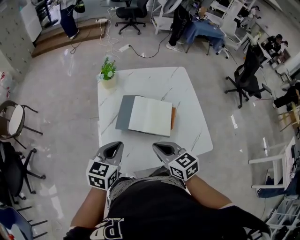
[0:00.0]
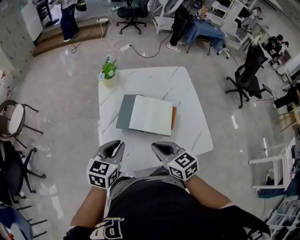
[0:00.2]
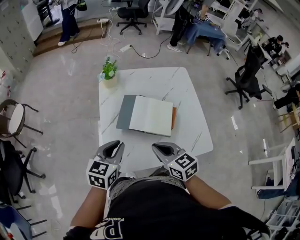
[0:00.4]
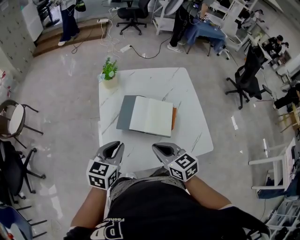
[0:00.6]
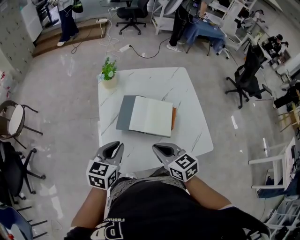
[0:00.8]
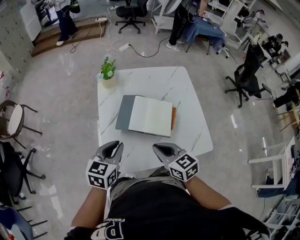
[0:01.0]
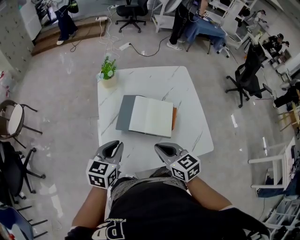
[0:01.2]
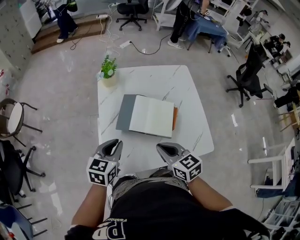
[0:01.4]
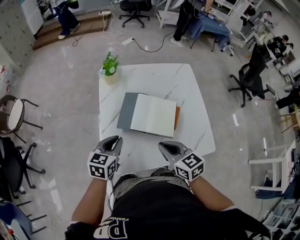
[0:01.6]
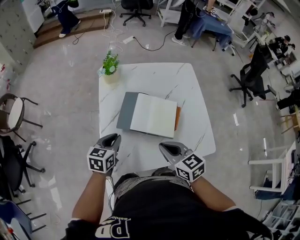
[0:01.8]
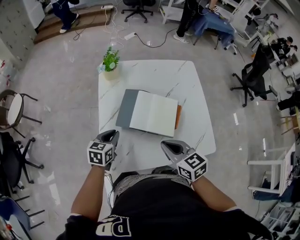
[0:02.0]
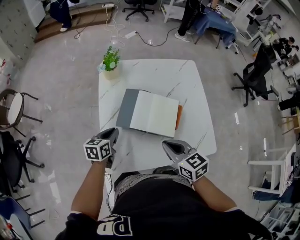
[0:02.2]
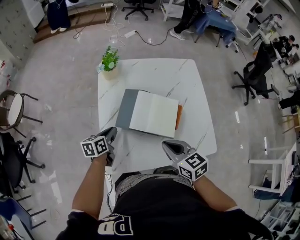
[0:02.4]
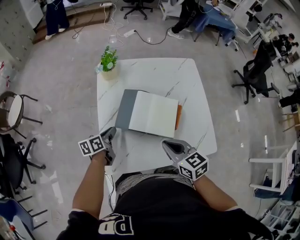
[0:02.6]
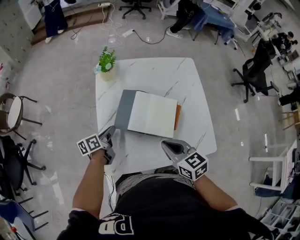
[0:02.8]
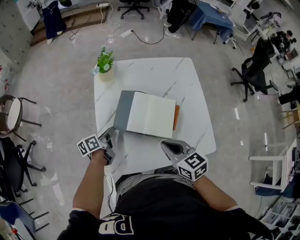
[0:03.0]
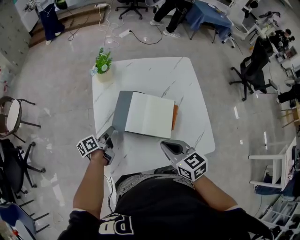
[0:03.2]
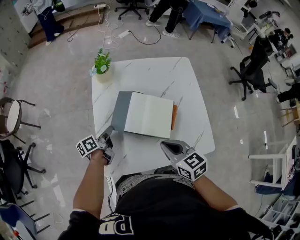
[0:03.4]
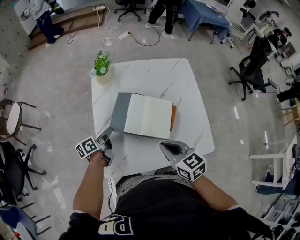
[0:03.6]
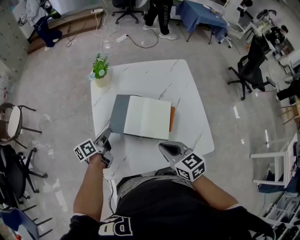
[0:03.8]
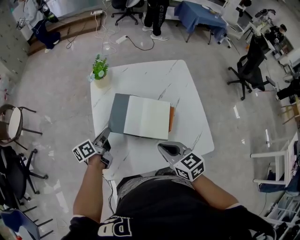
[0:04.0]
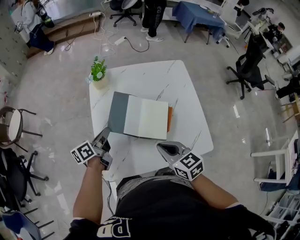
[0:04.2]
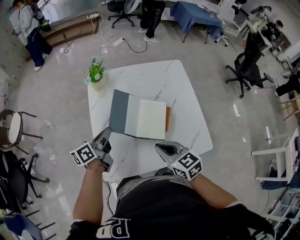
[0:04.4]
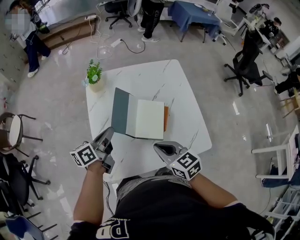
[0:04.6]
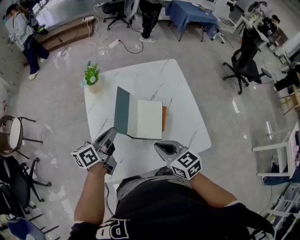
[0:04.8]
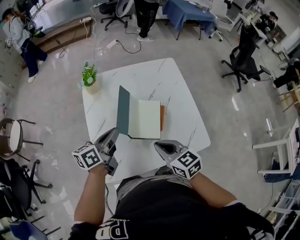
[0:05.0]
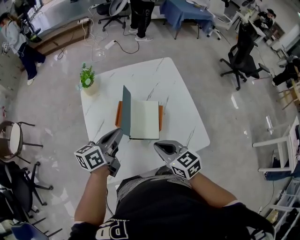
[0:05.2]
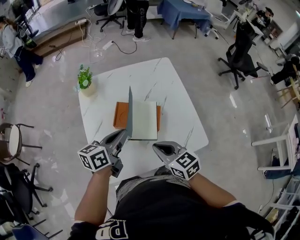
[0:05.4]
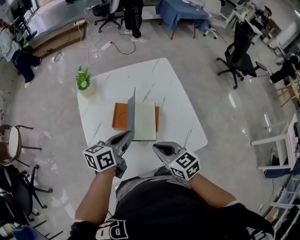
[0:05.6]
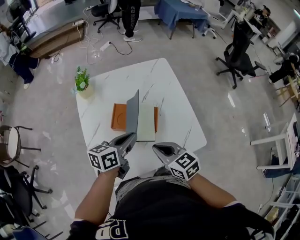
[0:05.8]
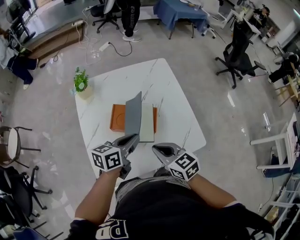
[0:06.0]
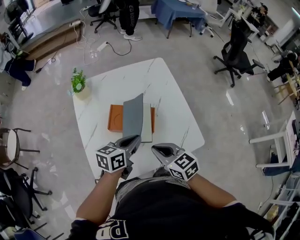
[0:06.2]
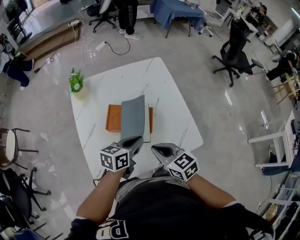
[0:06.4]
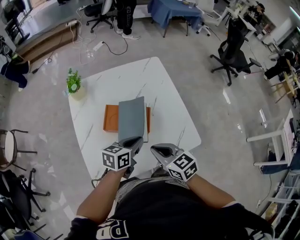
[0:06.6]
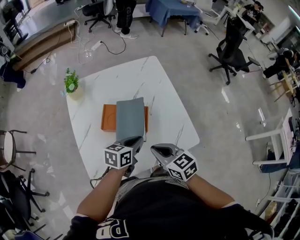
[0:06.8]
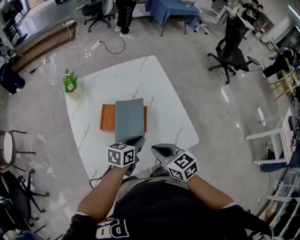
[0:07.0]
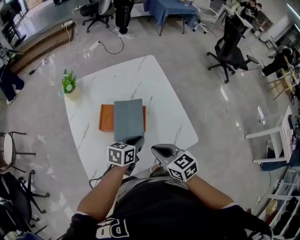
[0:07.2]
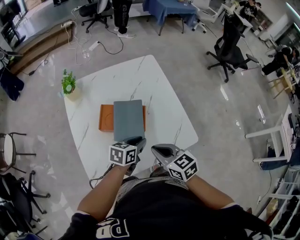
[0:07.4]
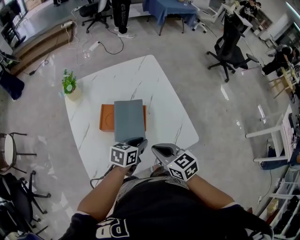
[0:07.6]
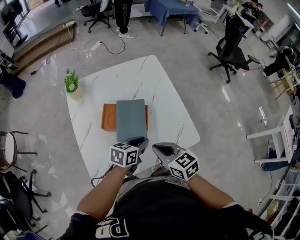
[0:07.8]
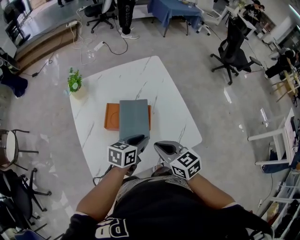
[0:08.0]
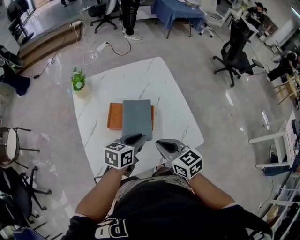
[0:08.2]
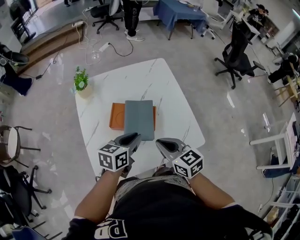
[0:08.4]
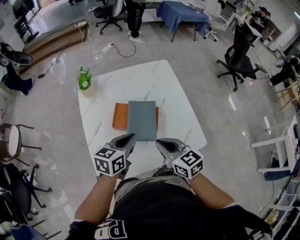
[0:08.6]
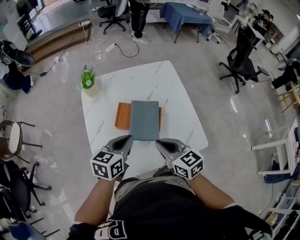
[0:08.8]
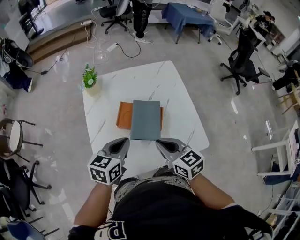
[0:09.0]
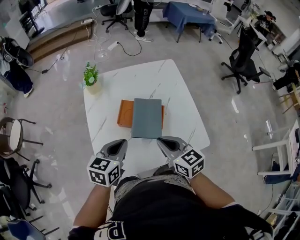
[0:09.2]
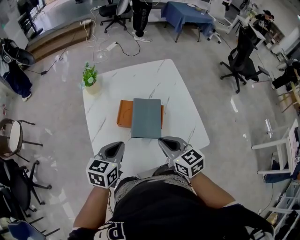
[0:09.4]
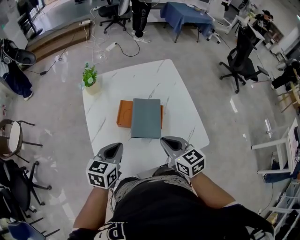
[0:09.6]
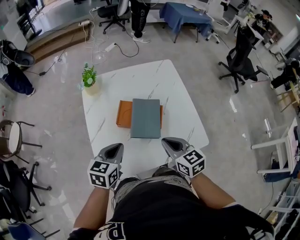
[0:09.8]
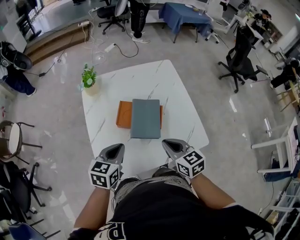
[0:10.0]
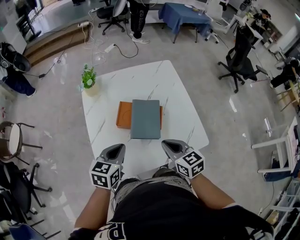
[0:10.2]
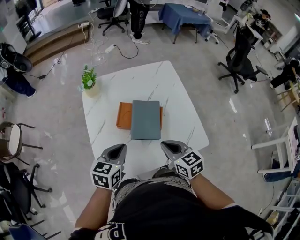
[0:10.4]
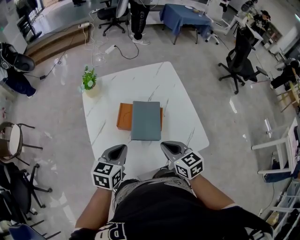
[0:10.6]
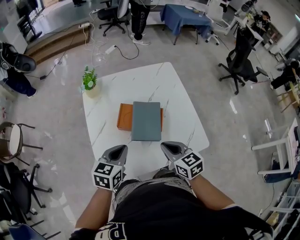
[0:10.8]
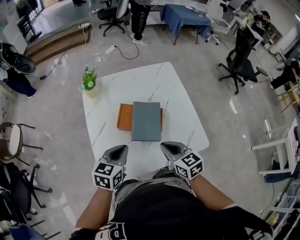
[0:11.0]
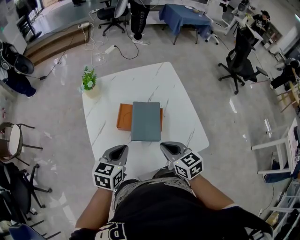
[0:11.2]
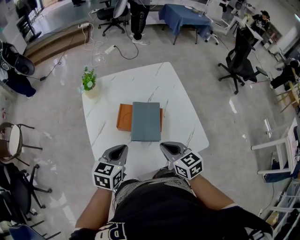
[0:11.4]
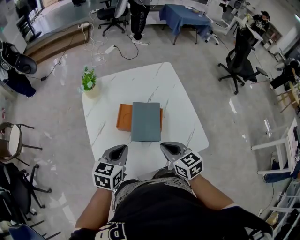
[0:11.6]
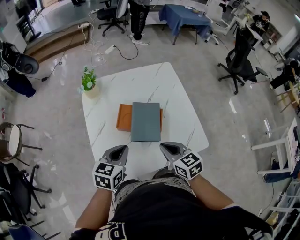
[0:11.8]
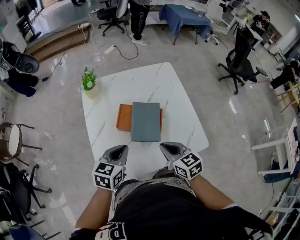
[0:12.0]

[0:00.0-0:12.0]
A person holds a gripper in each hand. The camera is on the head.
0:00.0 to 0:01.6: The left gripper is displaced downward by approximately 5 cm.
0:01.6 to 0:03.0: The left gripper travels downward and forward by some 15 cm, and rotates around the line of its fingers by some 50 degrees, counterclockwise from behind.
0:03.0 to 0:04.4: The left gripper moves upward, about 15 cm.
0:04.4 to 0:06.0: The left gripper shifts roughly 20 cm to the right, and changes its angle by about 30 degrees.
0:06.0 to 0:07.6: The left gripper is displaced downward and to the right by about 15 cm, and rotates roughly 20 degrees.
0:07.6 to 0:09.0: The right gripper heads to the left, covering some 5 cm; the left gripper heads to the left and upward, covering some 20 cm, and rotates some 20 degrees.
0:09.0 to 0:10.4: The grippers move only a little.
0:10.4 to 0:12.0: Both grippers stay about where they are.

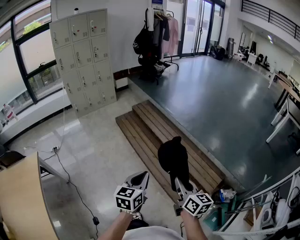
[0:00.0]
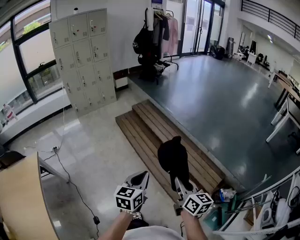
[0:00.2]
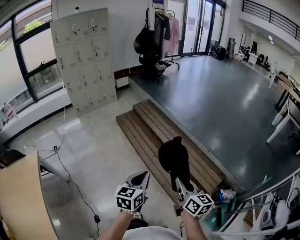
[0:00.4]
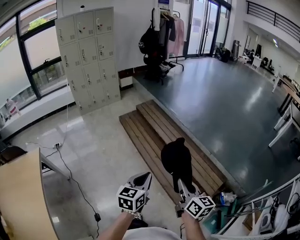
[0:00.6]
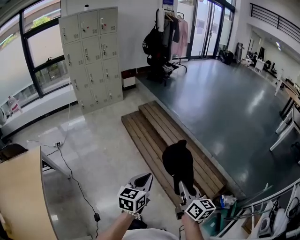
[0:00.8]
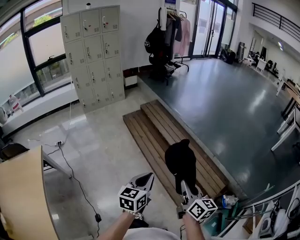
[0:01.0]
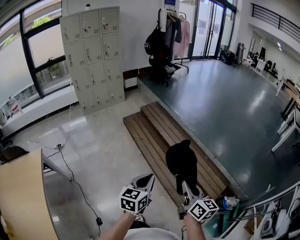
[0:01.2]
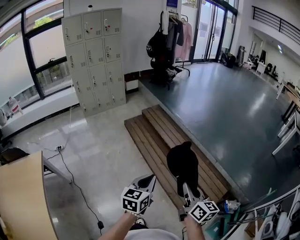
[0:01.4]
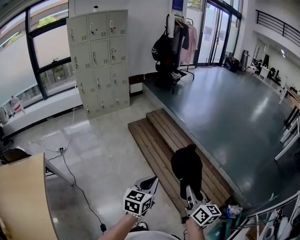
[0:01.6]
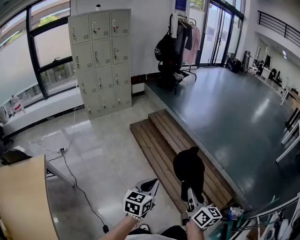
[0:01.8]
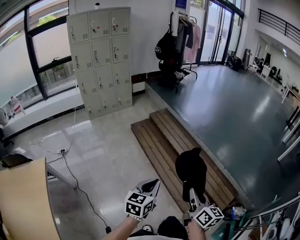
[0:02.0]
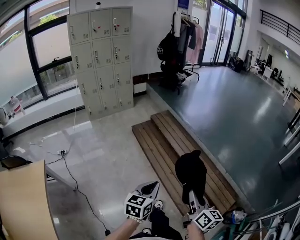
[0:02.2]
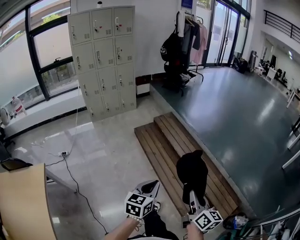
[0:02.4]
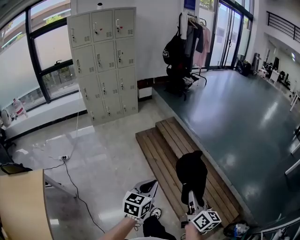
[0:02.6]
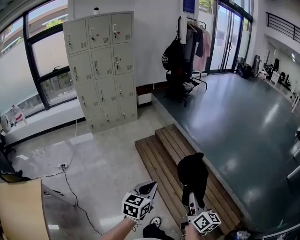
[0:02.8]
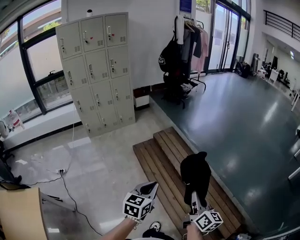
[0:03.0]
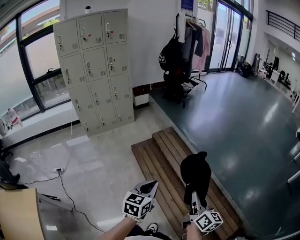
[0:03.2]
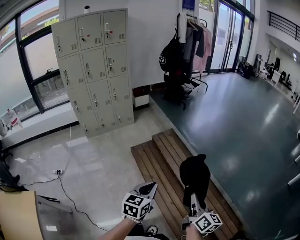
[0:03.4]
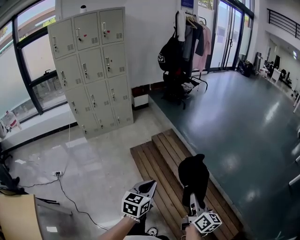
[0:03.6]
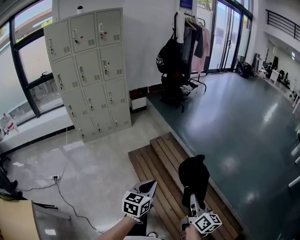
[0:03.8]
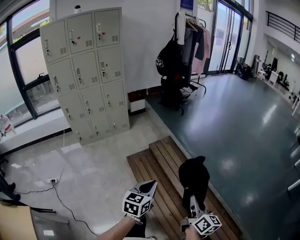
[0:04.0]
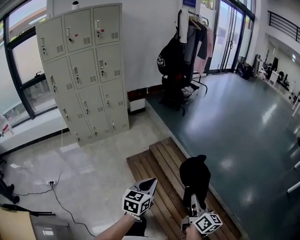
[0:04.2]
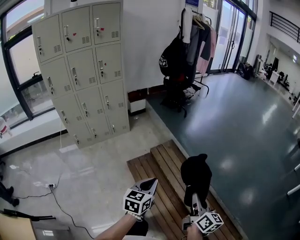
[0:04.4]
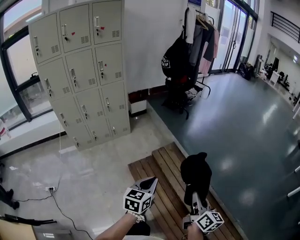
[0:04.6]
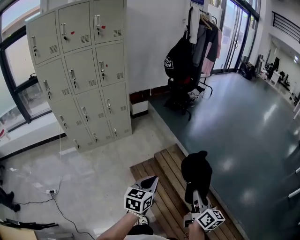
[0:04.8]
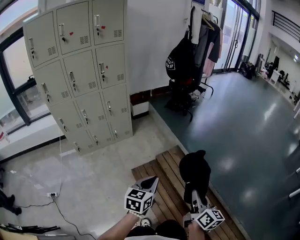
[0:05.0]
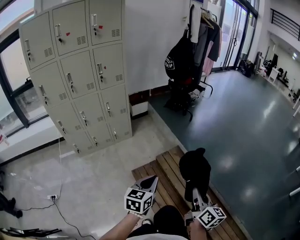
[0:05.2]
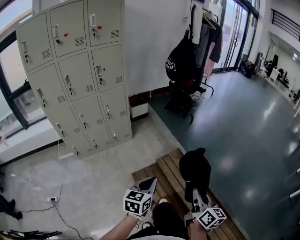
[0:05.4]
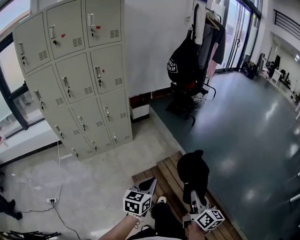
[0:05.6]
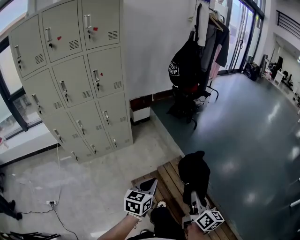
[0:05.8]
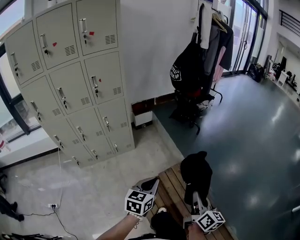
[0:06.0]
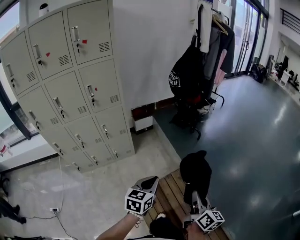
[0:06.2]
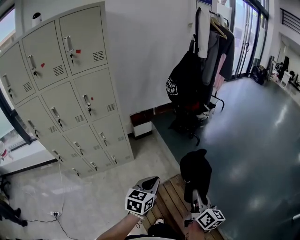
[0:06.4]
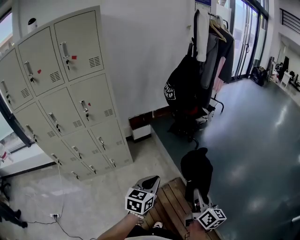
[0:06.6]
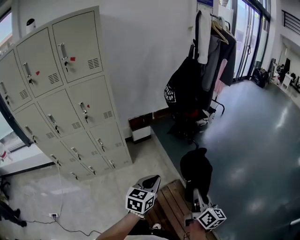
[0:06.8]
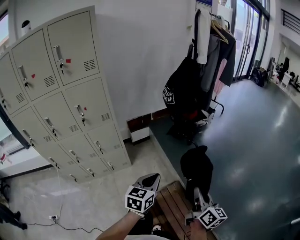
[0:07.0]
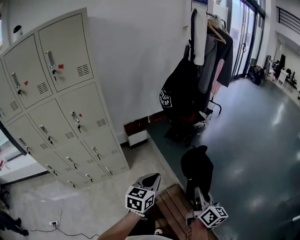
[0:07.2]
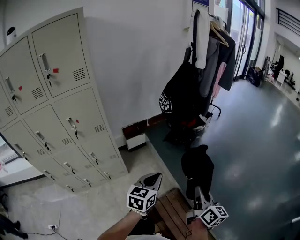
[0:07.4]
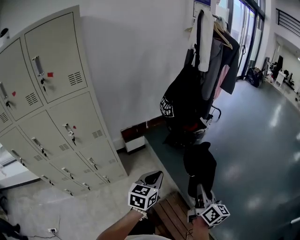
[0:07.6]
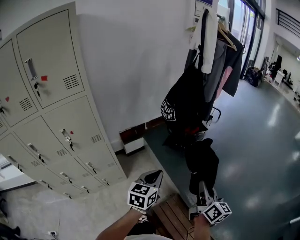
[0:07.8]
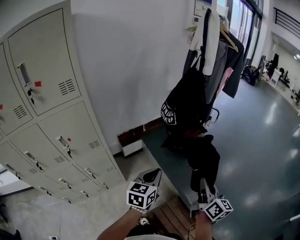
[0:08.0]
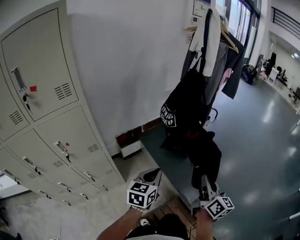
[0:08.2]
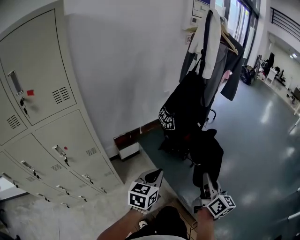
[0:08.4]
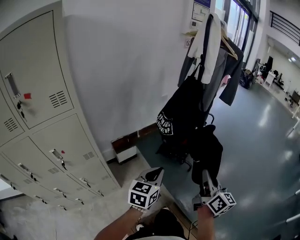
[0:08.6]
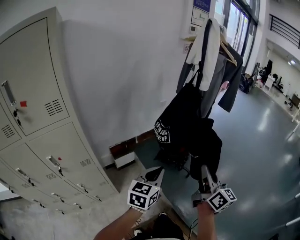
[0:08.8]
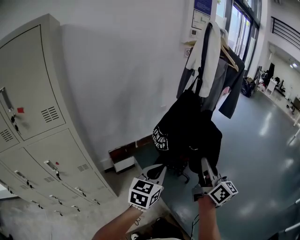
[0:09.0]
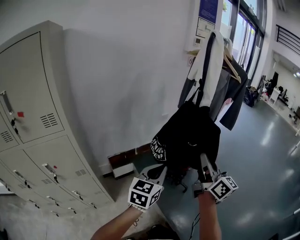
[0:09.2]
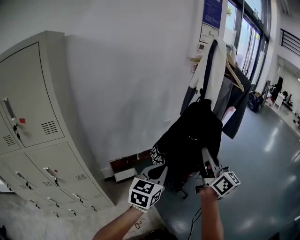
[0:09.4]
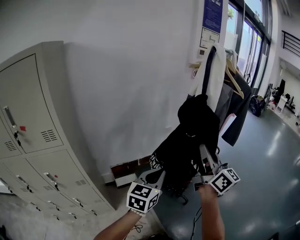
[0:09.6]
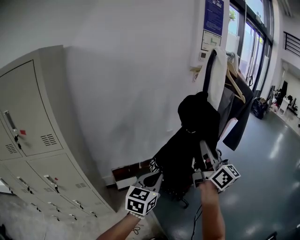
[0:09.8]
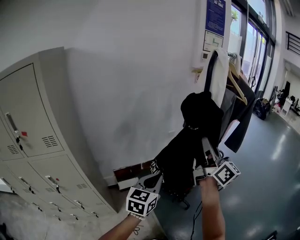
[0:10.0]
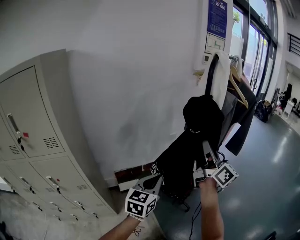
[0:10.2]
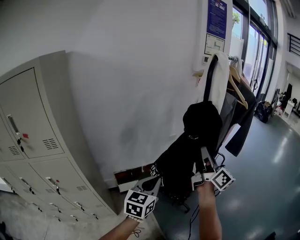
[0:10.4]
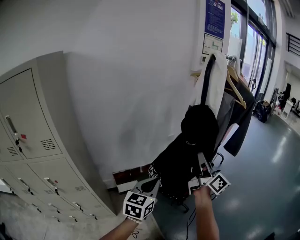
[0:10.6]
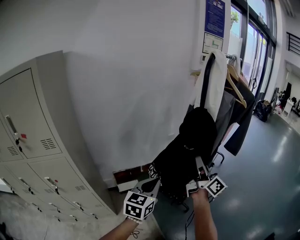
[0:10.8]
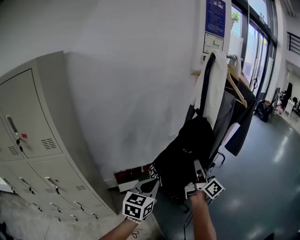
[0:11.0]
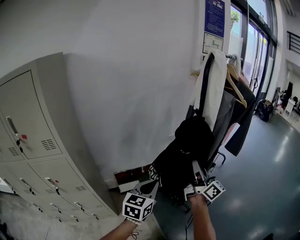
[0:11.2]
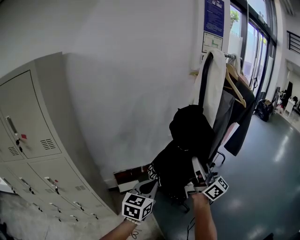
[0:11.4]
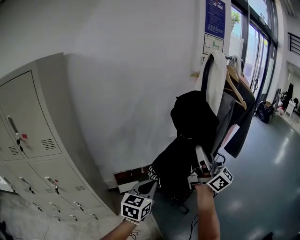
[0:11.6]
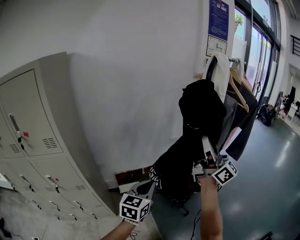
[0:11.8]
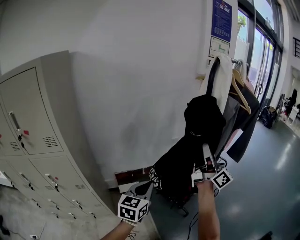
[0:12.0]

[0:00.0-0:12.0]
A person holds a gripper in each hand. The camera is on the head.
0:00.0 to 0:01.6: Both grippers travel together to the left and forward, approximately 10 cm.
0:01.6 to 0:03.0: Both grippers move forward, approximately 35 cm.
0:03.0 to 0:04.4: Both grippers move forward, some 35 cm.
0:04.4 to 0:06.0: The two grippers go about 40 cm forward and to the left.
0:06.0 to 0:07.6: The grippers both shift forward by some 40 cm.
0:07.6 to 0:09.0: The two grippers go approximately 30 cm forward and upward.
0:09.0 to 0:10.4: The right gripper goes roughly 25 cm forward and upward. The left gripper shifts about 15 cm forward and upward.
0:10.4 to 0:12.0: The right gripper goes up and down, some 15 cm each way, reversing 2 times.
